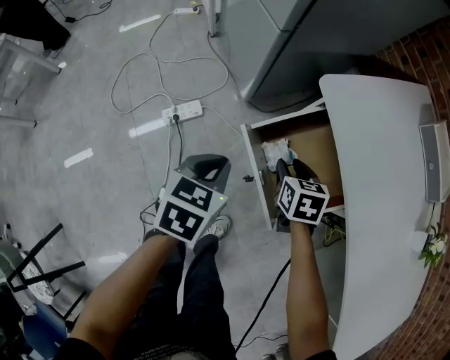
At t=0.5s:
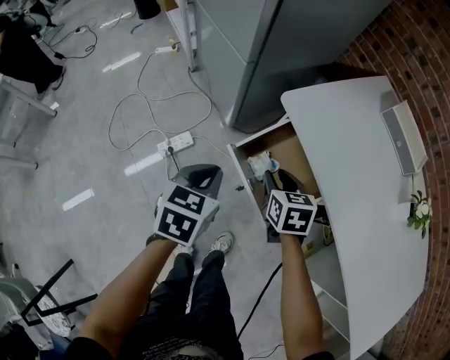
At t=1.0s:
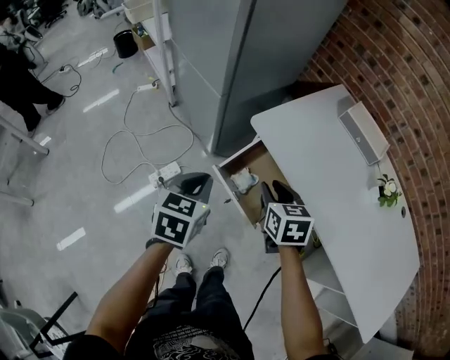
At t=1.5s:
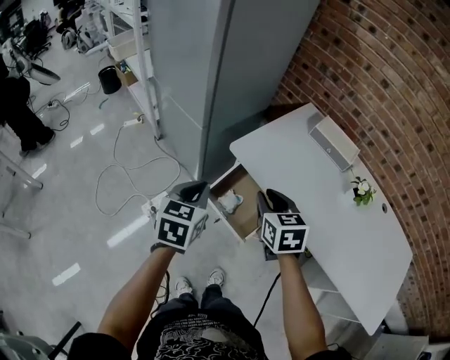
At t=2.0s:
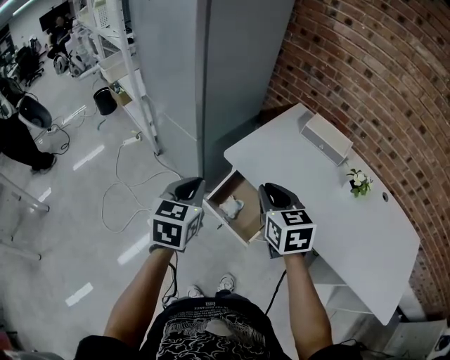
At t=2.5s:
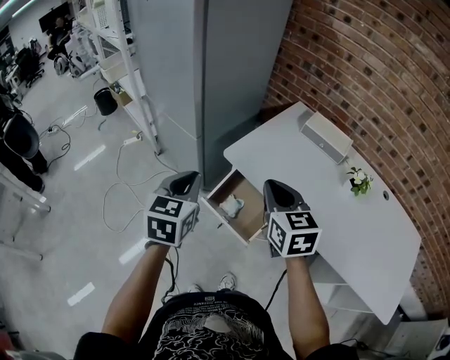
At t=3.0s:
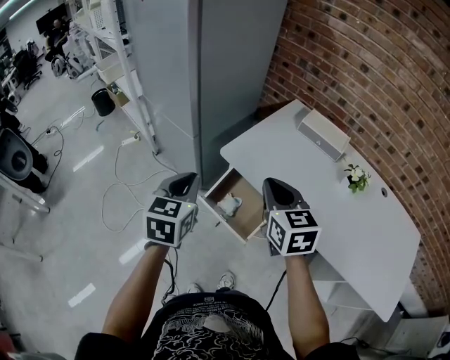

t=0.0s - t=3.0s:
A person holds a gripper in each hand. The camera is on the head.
t=0.0s - t=1.5s: The two grippers go some 25 cm upward. The left gripper turns by about 20 degrees. The right gripper rotates some 20 degrees.
t=1.5s - t=3.0s: The two grippers go approximately 10 cm upward. The right gripper closes up.

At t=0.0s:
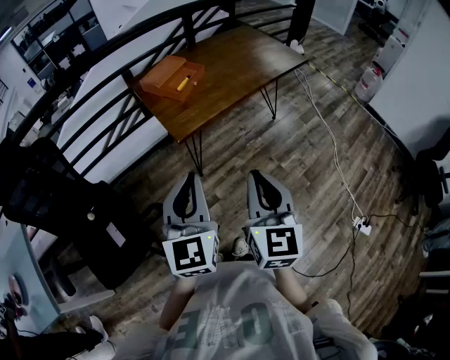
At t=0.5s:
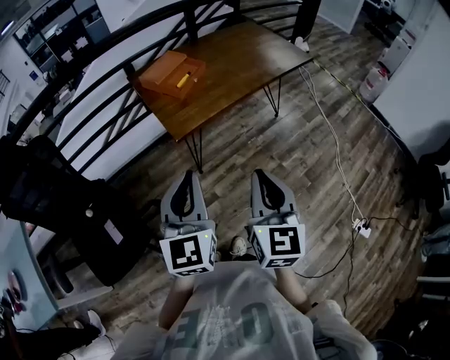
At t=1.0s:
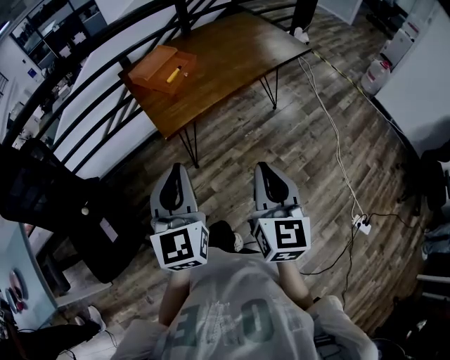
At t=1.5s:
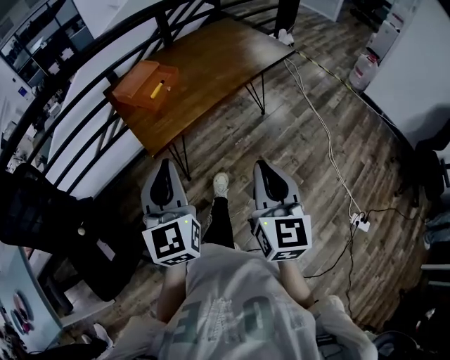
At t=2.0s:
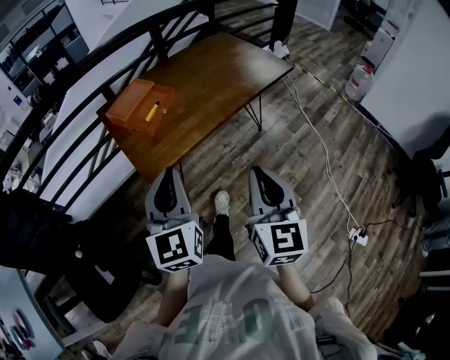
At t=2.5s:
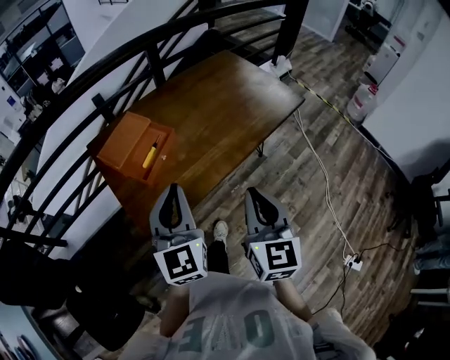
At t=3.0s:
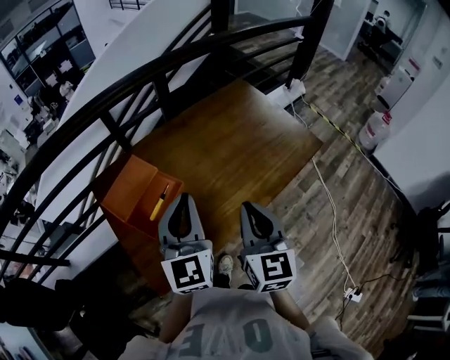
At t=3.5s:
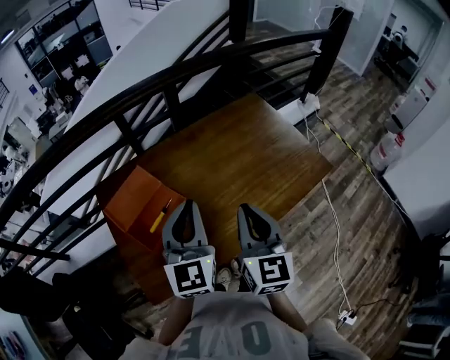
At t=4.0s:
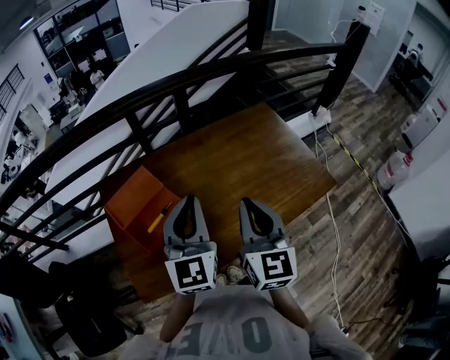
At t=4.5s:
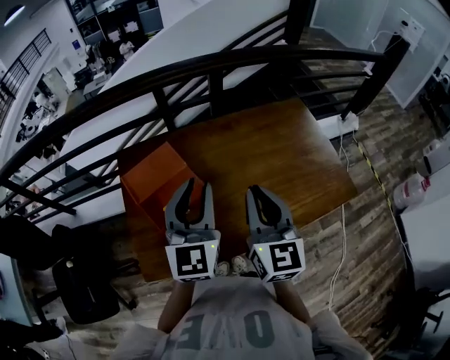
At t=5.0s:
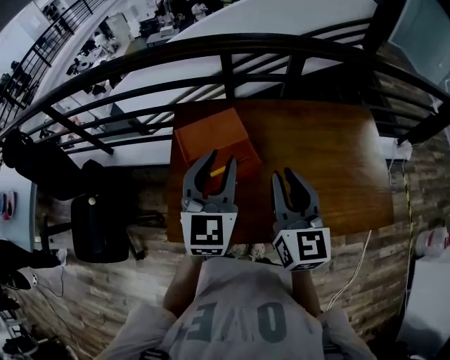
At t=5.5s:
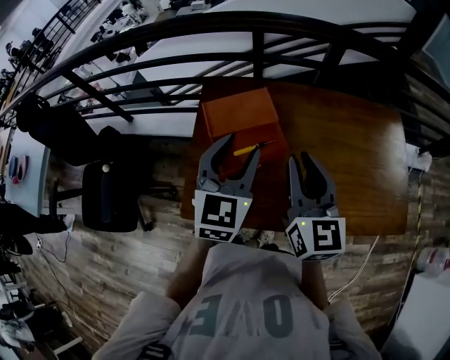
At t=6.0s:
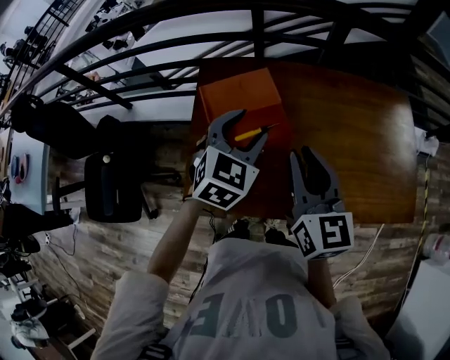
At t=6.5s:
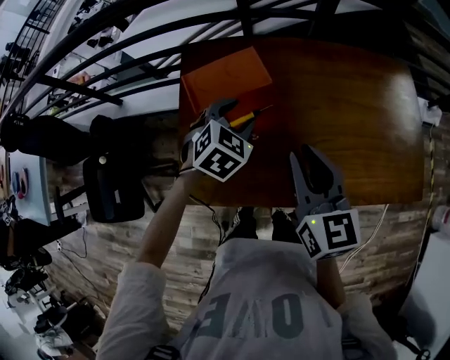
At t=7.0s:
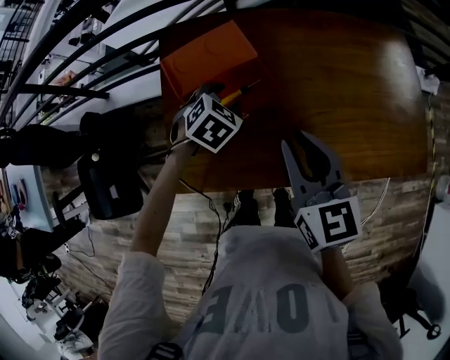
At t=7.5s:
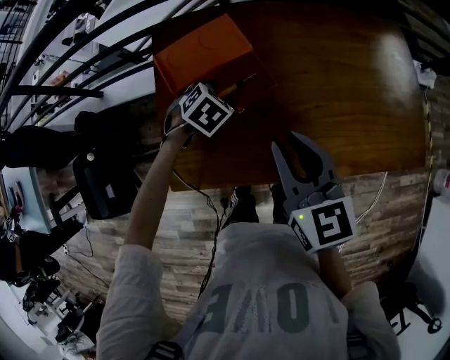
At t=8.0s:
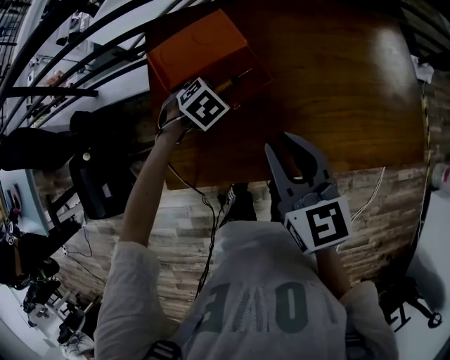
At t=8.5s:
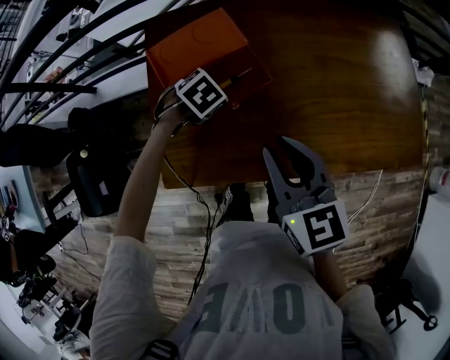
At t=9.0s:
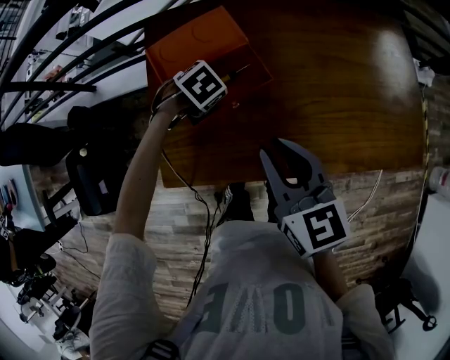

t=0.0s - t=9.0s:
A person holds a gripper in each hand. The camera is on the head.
t=0.0s - t=2.0s: The left gripper is displaced forward by roughly 20 cm. The right gripper travels forward and to the right by approximately 20 cm.
t=2.0s - t=4.5s: The two grippers travel together, forward, roughly 40 cm. The right gripper changes its angle by roughly 30 degrees.
t=4.5s - t=7.0s: The right gripper is displaced to the left and downward by roughly 15 cm, and rotates approximately 30 degrees. Meanwhile the left gripper goes approximately 25 cm downward, tilts its fingers approximately 60 degrees downward, and opens its fingers.
t=7.0s - t=9.0s: The left gripper is displaced downward by about 5 cm, swivels approximately 20 degrees, and closes.

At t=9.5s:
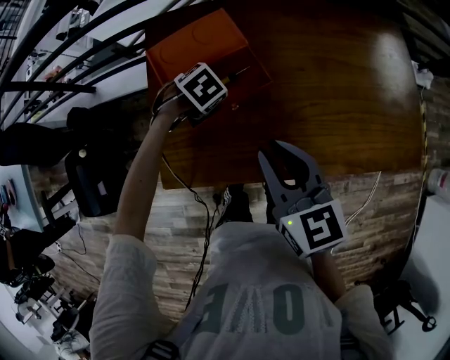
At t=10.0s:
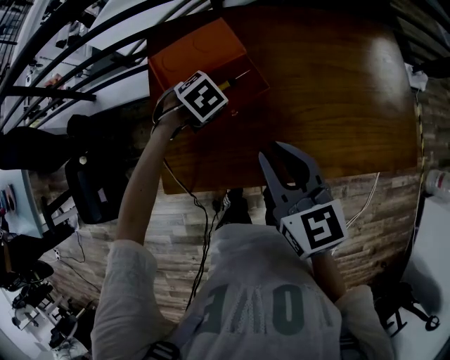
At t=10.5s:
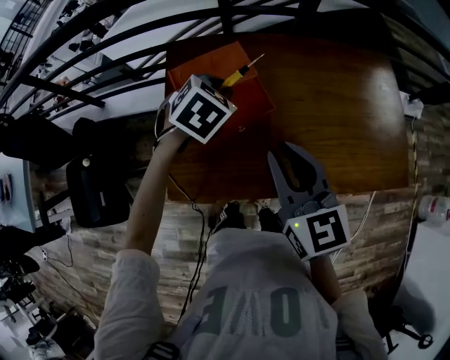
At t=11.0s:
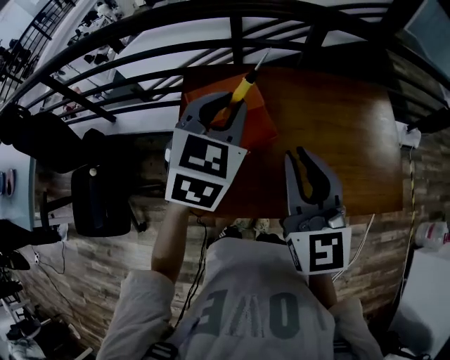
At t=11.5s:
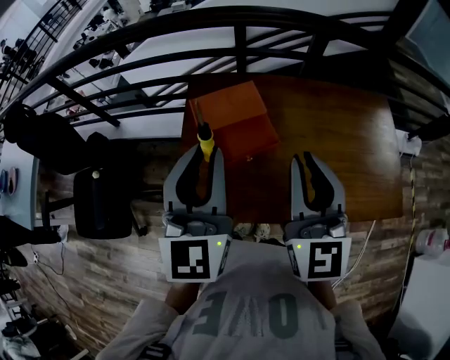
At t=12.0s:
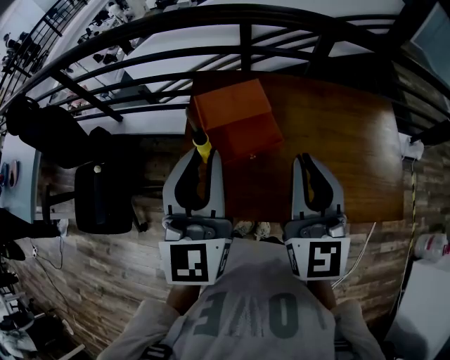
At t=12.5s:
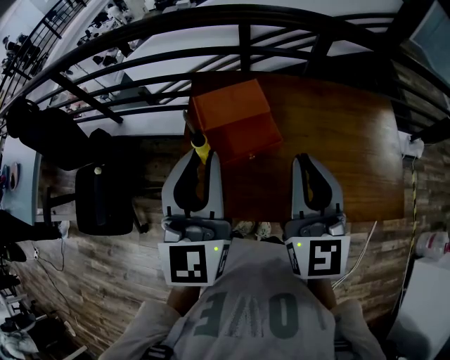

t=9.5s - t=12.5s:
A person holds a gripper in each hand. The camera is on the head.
t=9.5s - t=11.0s: The left gripper travels upward by roughly 35 cm, and tips its fingers upward by about 60 degrees, while the right gripper shifts approximately 15 cm upward, and swivels roughly 30 degrees.
t=11.0s - t=12.5s: The left gripper travels backward, to the left and upward by roughly 15 cm, and rotates some 40 degrees.

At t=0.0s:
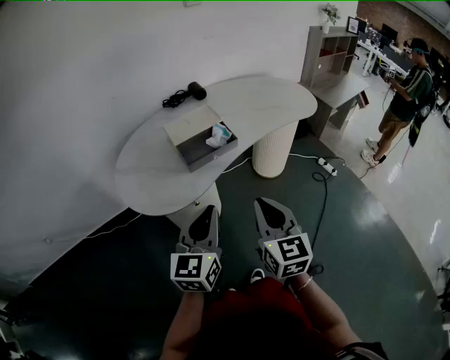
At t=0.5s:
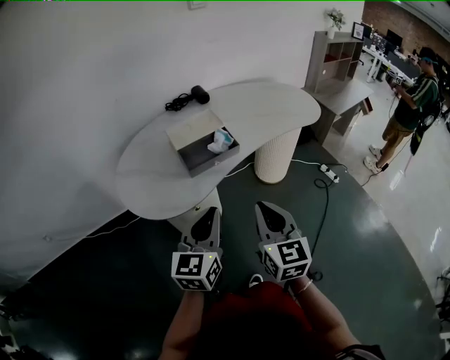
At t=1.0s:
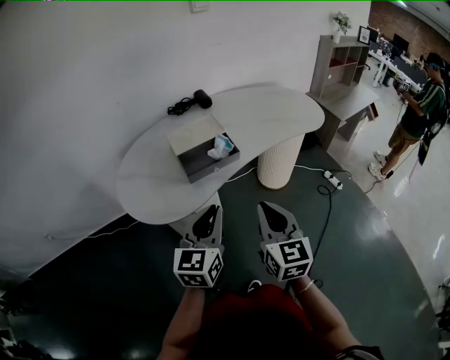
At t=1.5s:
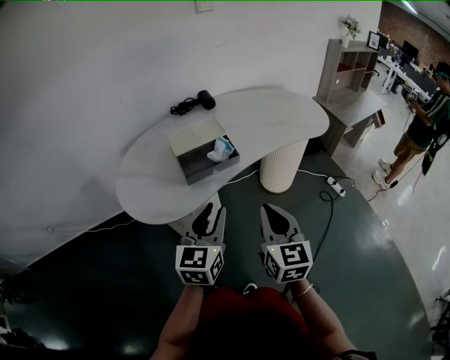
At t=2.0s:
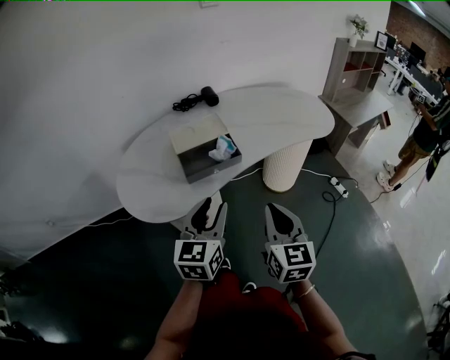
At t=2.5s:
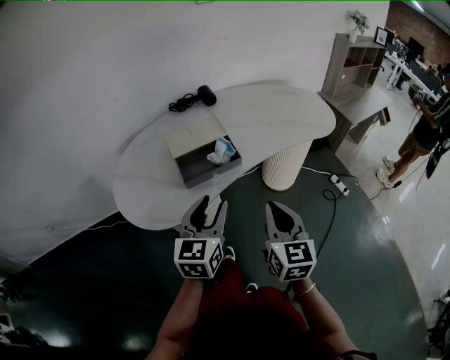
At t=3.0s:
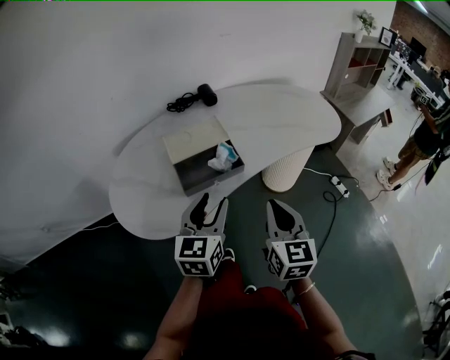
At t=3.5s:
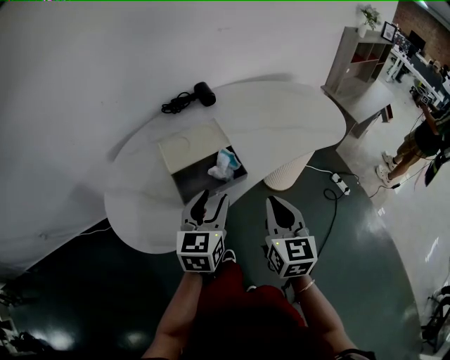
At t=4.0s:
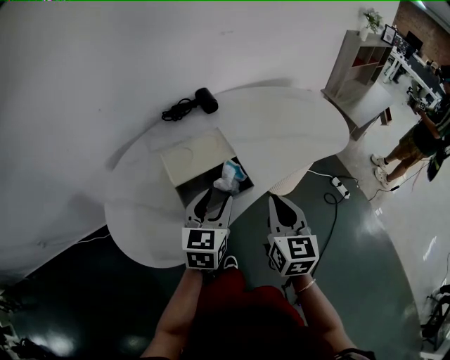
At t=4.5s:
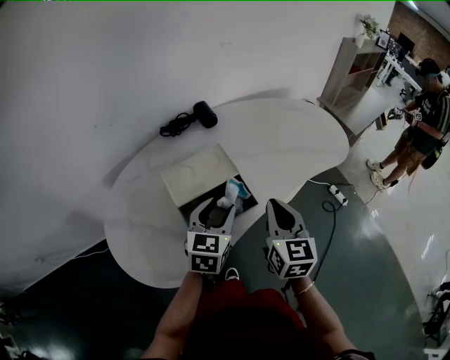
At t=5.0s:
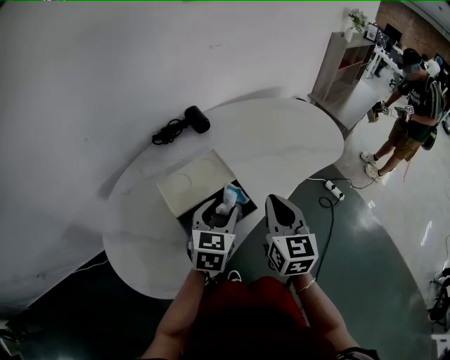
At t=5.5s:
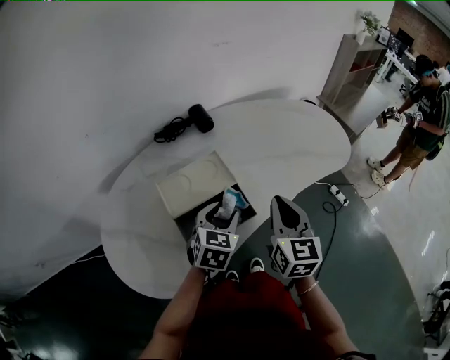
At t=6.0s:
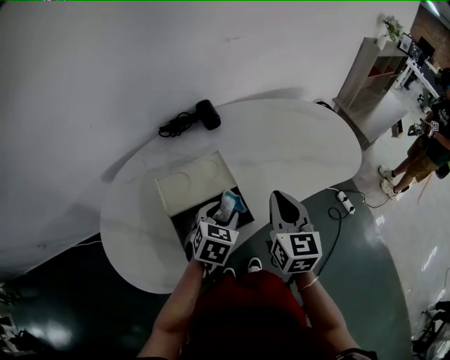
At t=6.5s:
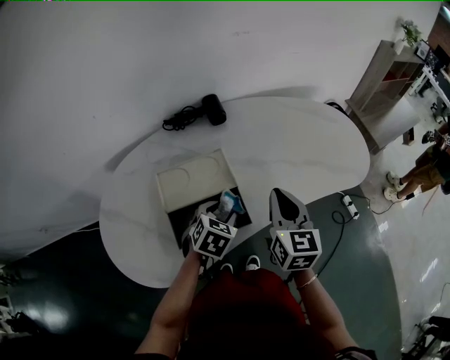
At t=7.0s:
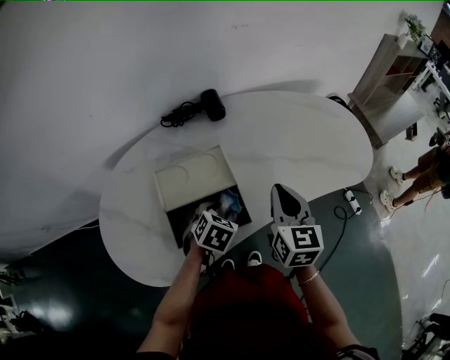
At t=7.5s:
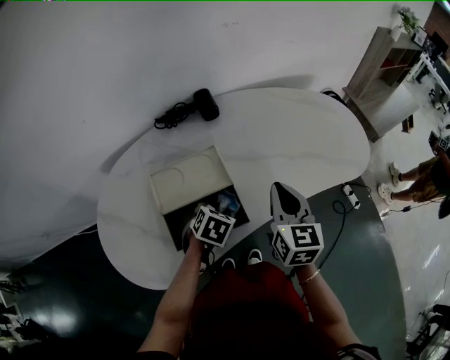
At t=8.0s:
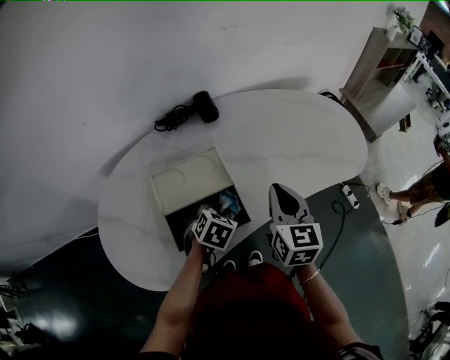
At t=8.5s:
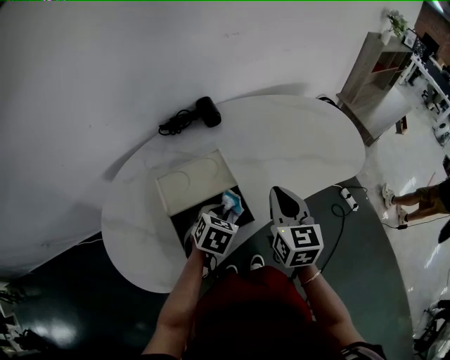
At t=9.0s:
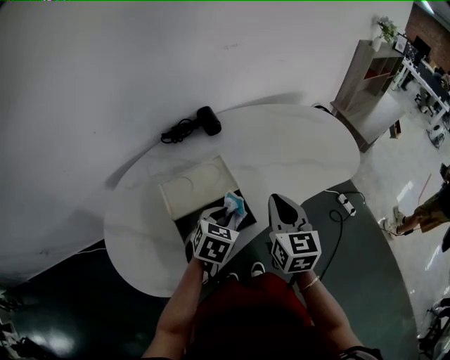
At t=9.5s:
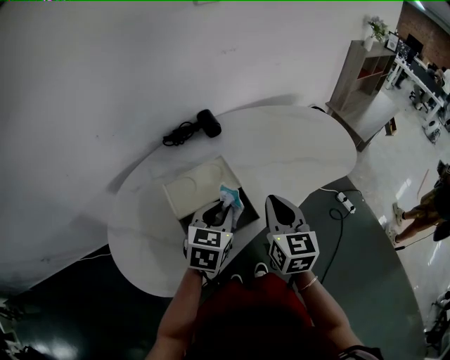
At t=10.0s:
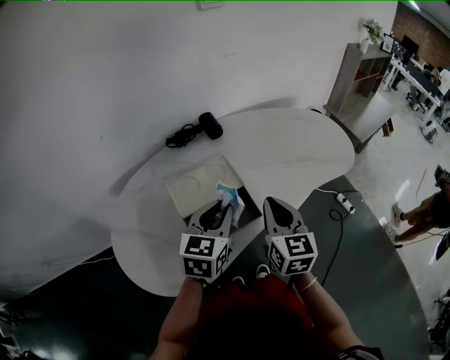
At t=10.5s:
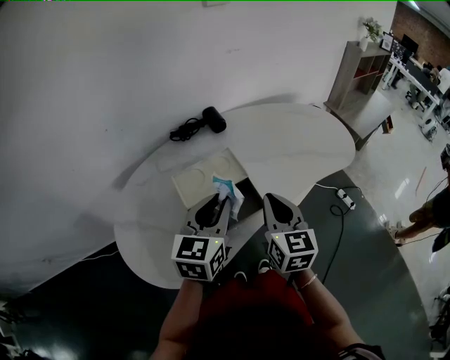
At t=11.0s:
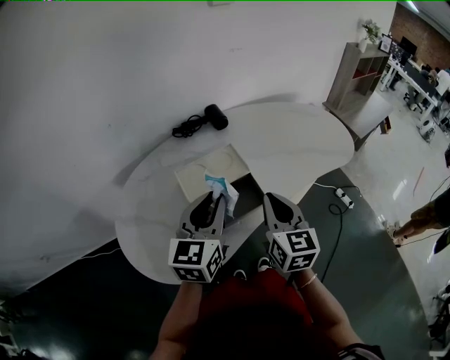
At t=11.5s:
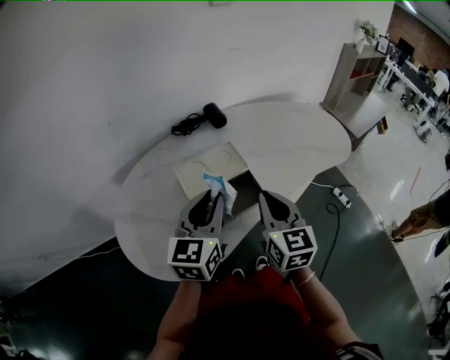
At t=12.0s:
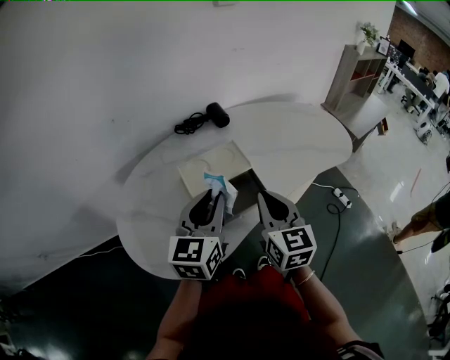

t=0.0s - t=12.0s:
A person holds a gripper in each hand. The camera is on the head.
t=0.0s - t=2.0s: The right gripper travels forward and to the right by roughly 10 cm. The left gripper goes approximately 10 cm forward, and opens its fingers.
t=2.0s - t=4.0s: Both grippers travel together forward, roughly 20 cm.
t=4.0s - t=6.0s: The left gripper heads forward and downward, covering roughly 15 cm, and rotates about 30 degrees, while the right gripper travels forward by approximately 15 cm.
t=6.0s - t=8.0s: The left gripper heads downward, covering approximately 5 cm, and closes up.
t=8.0s - t=10.0s: The left gripper moves upward, roughly 20 cm, and angles its fingers upward, by roughly 40 degrees, while the right gripper moves backward, approximately 10 cm.
t=10.0s - t=12.0s: Both grippers travel together backward and to the left, approximately 10 cm.
